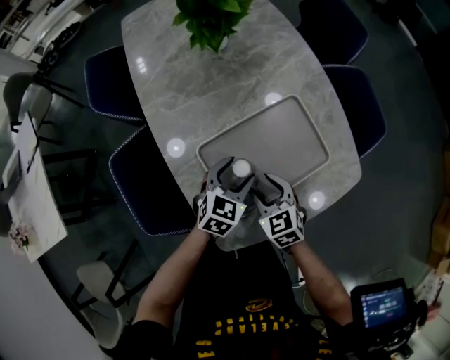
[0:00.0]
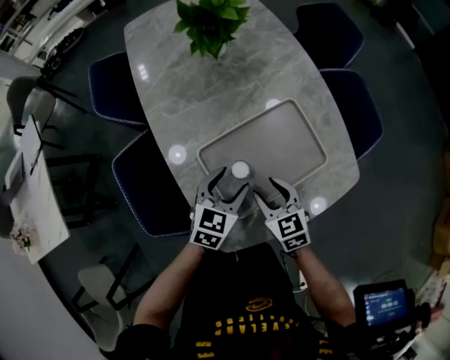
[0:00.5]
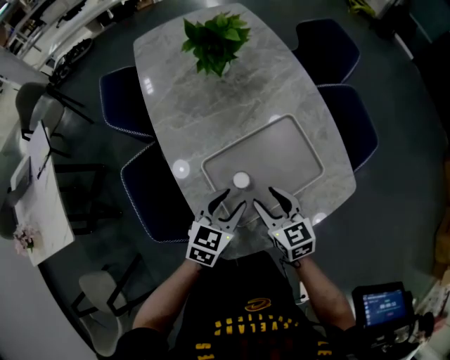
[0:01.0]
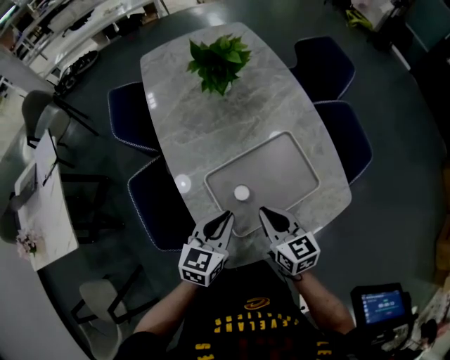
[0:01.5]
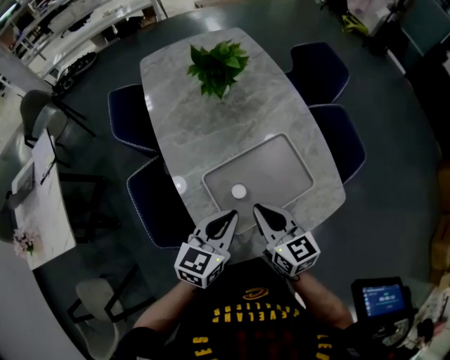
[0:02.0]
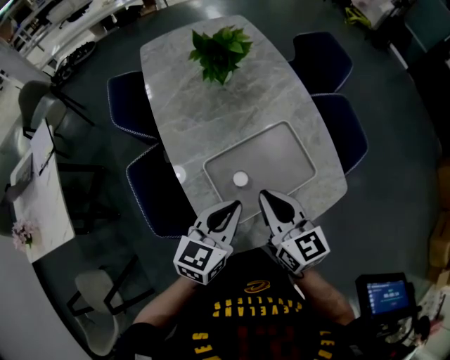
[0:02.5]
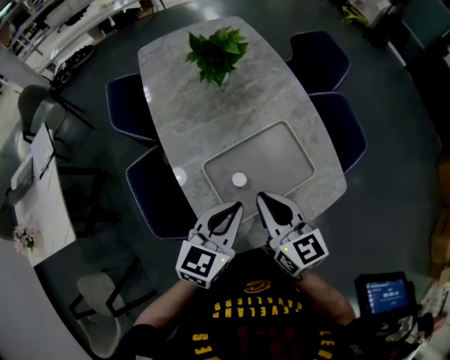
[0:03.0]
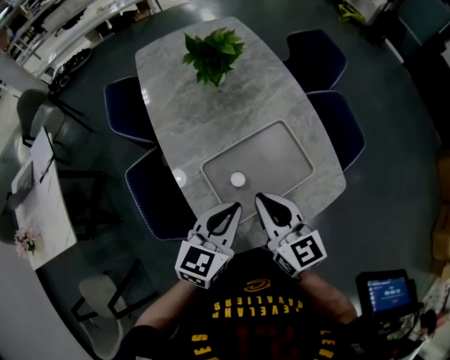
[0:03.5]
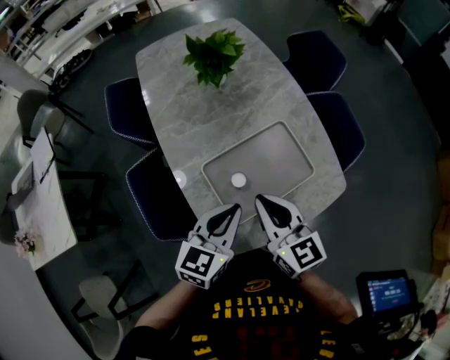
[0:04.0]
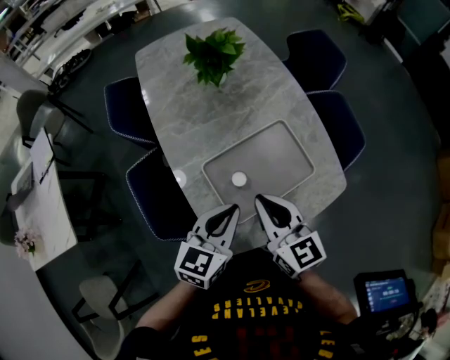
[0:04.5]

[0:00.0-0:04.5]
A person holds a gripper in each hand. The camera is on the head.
0:00.0 to 0:02.0: The two grippers go about 20 cm upward. The right gripper changes its angle by roughly 30 degrees, and closes its fingers. The left gripper swivels about 20 degrees, and closes up.
0:02.0 to 0:04.5: The grippers stay close to where they were, moving slightly.

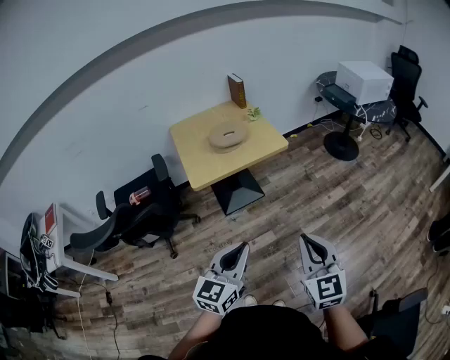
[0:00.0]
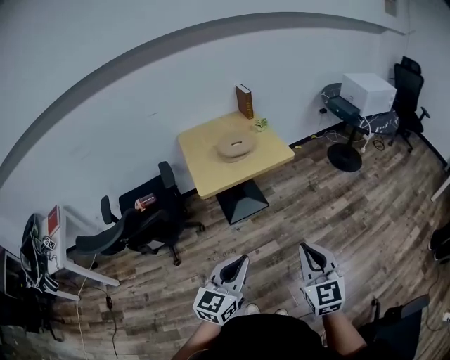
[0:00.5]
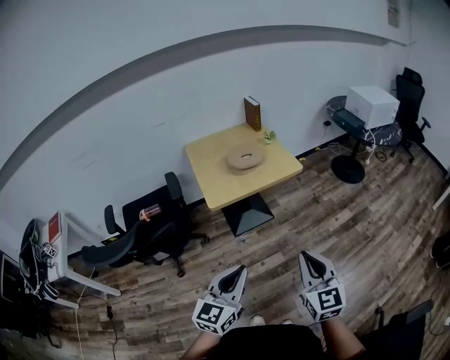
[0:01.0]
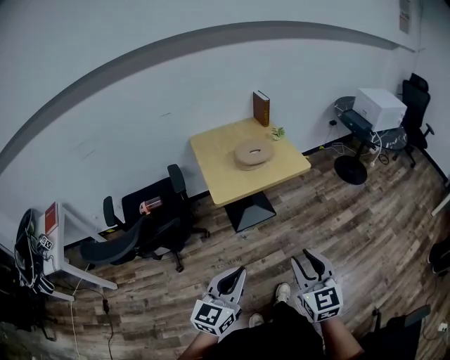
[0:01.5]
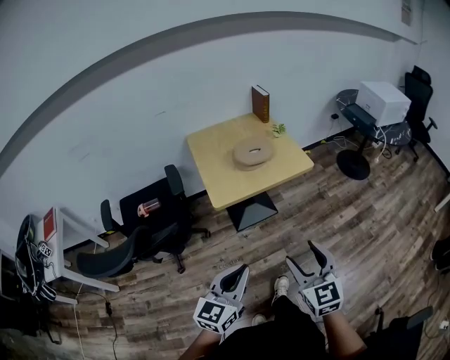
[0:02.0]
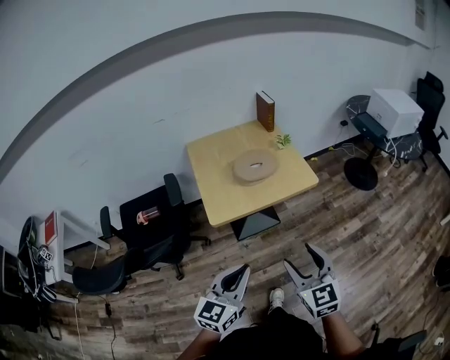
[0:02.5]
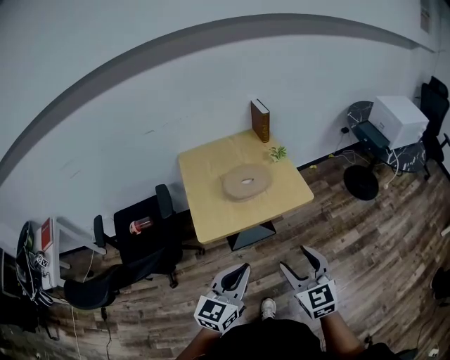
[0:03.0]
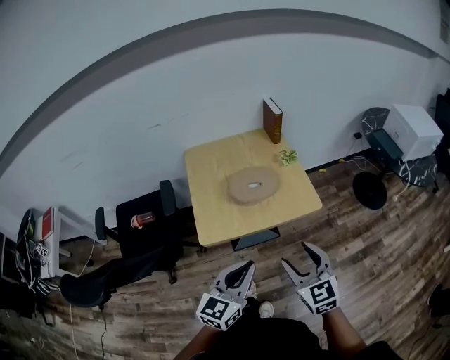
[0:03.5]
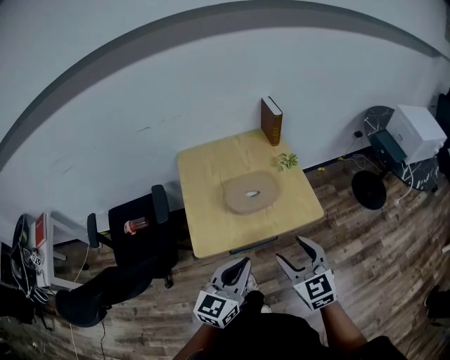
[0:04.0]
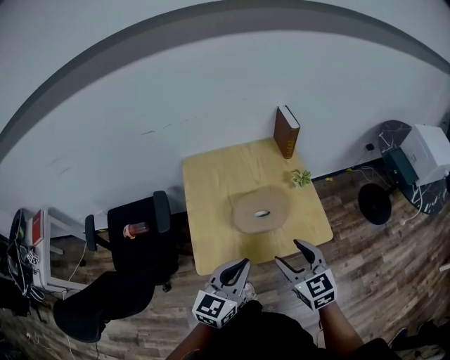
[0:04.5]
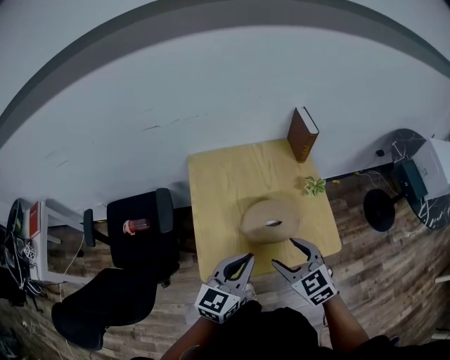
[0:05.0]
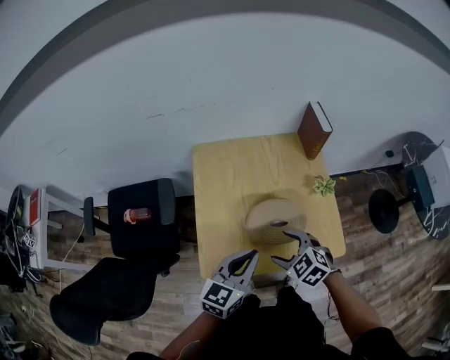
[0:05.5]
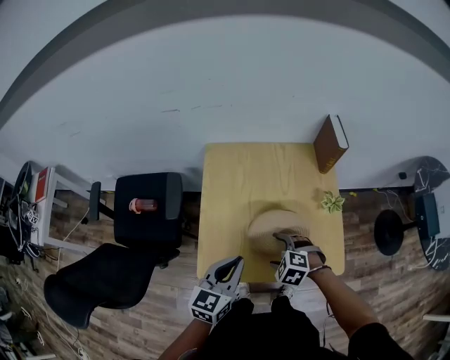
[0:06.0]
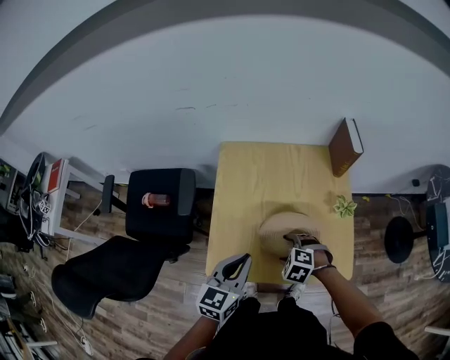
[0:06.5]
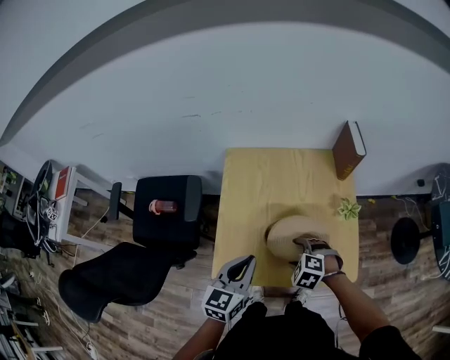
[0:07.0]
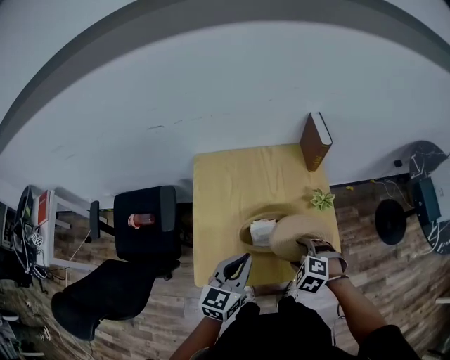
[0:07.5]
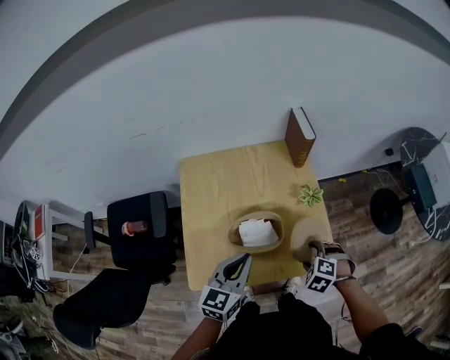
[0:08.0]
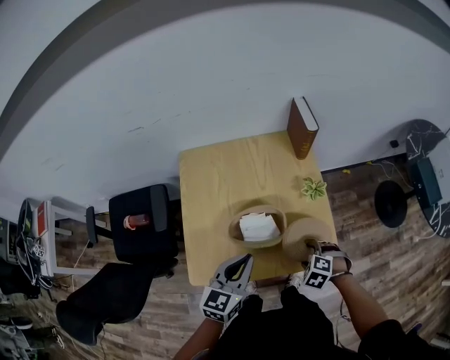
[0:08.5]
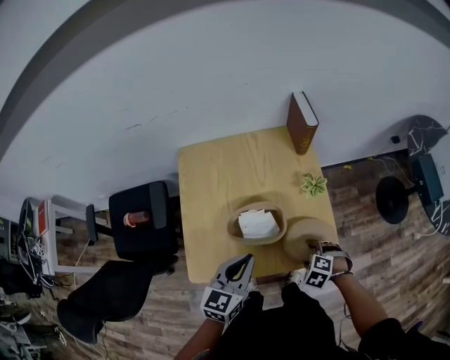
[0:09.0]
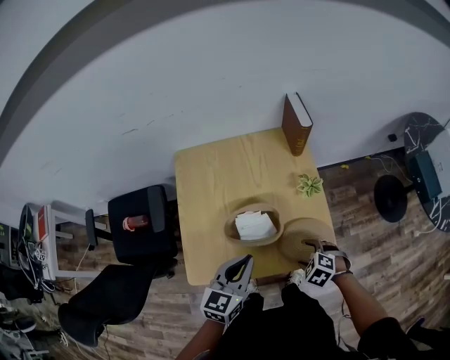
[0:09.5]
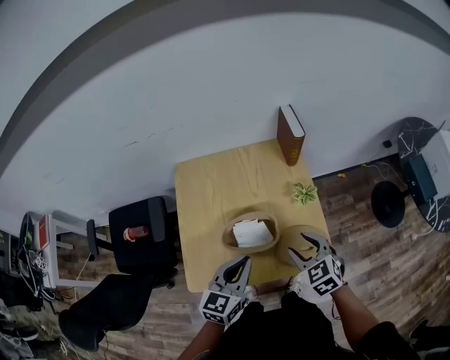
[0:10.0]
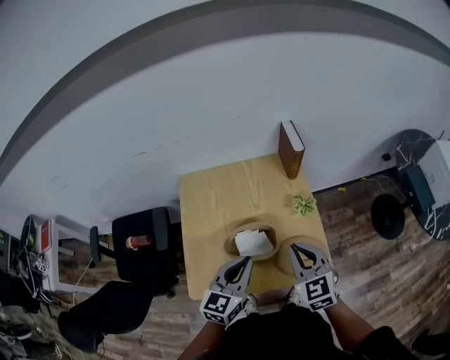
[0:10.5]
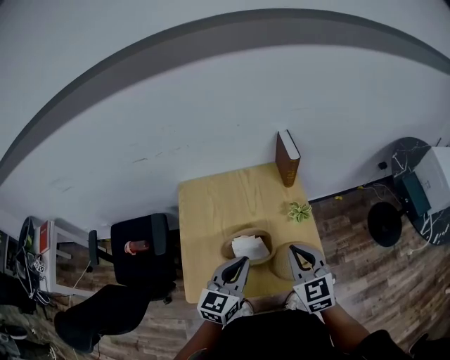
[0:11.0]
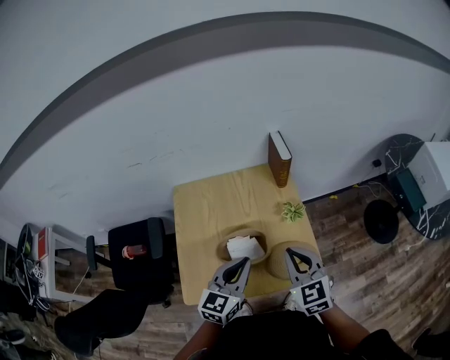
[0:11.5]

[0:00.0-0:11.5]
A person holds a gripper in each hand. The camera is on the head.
0:00.0 to 0:02.0: The left gripper goes about 15 cm to the left. Meanwhile the right gripper heads to the left and forward, covering approximately 15 cm, and opens.
0:02.0 to 0:04.0: The grippers both shift forward by roughly 35 cm.
0:04.0 to 0:06.0: The right gripper shifts by approximately 30 cm, and tips its fingers downward by approximately 50 degrees. Meanwhile the left gripper shifts by some 20 cm.
0:06.0 to 0:07.5: The right gripper travels to the right by some 10 cm, while the left gripper travels to the right by some 5 cm.
0:07.5 to 0:09.5: The left gripper moves approximately 5 cm, while the right gripper moves roughly 10 cm.
0:09.5 to 0:11.5: The right gripper moves upward, about 25 cm, angles its fingers upward, by about 50 degrees, and closes up. Meanwhile the left gripper moves upward, roughly 5 cm.

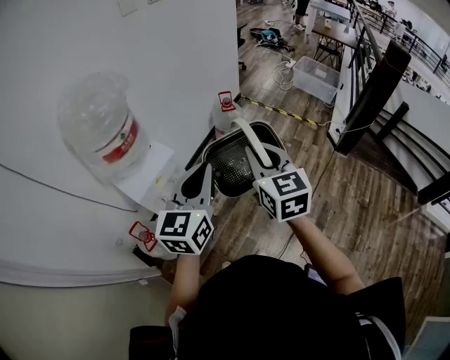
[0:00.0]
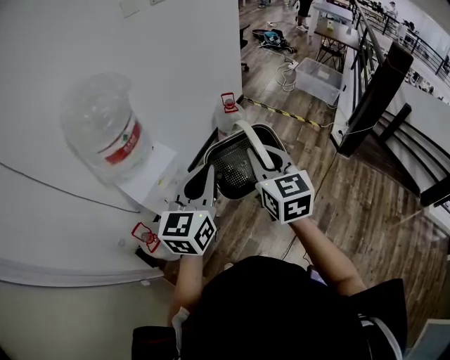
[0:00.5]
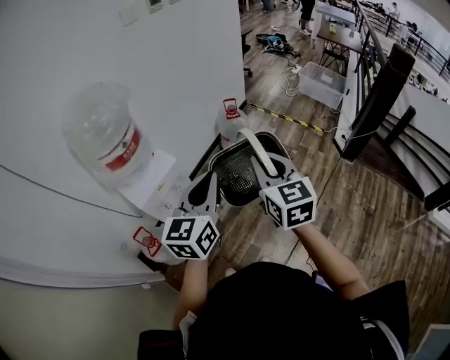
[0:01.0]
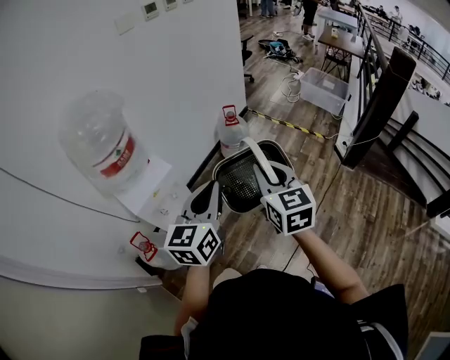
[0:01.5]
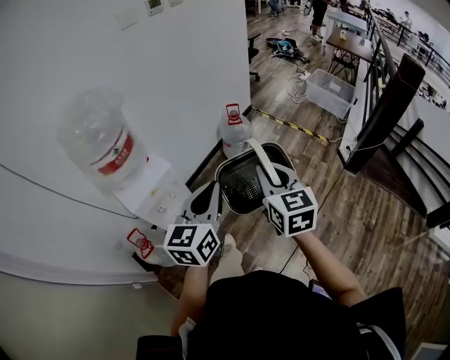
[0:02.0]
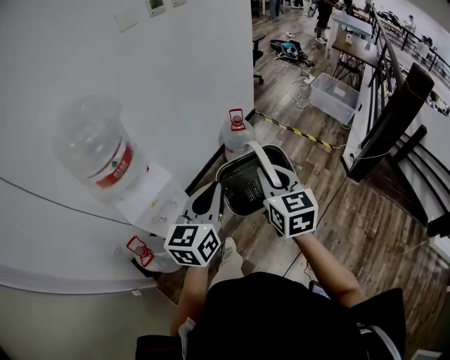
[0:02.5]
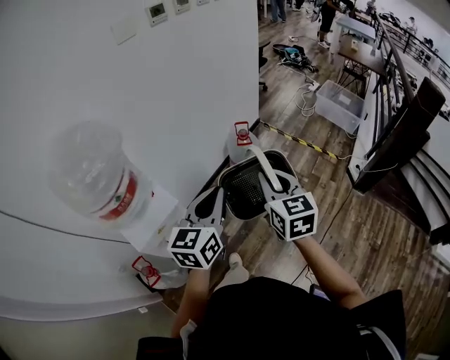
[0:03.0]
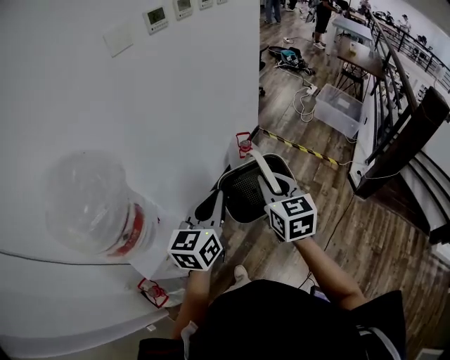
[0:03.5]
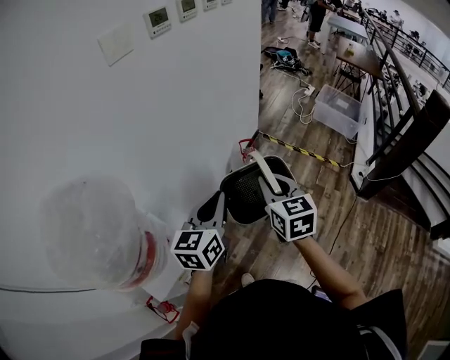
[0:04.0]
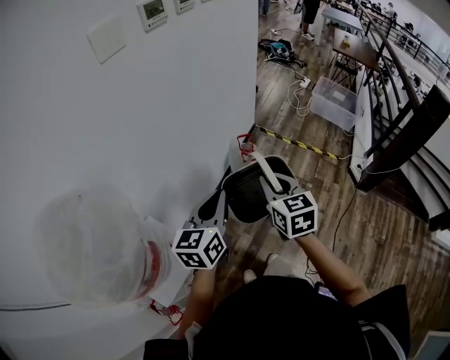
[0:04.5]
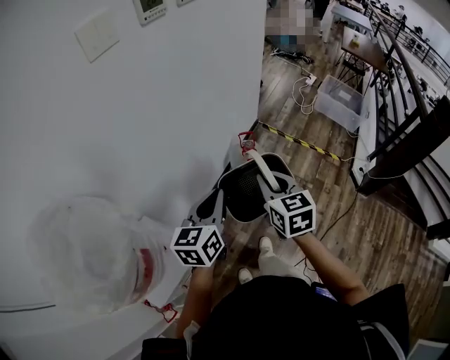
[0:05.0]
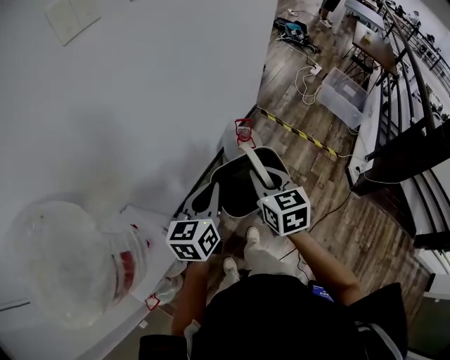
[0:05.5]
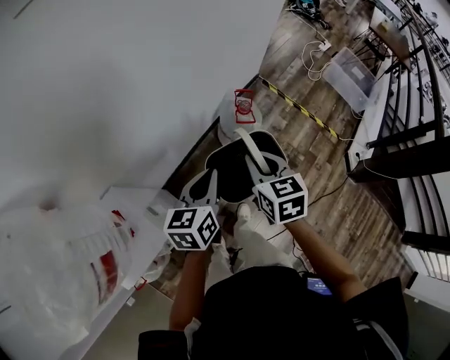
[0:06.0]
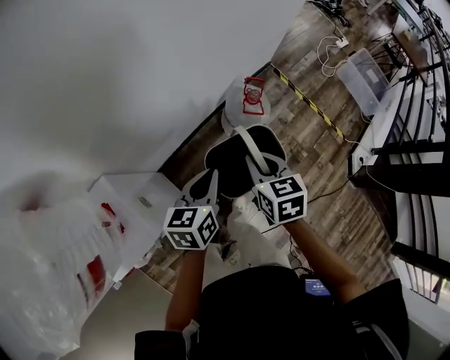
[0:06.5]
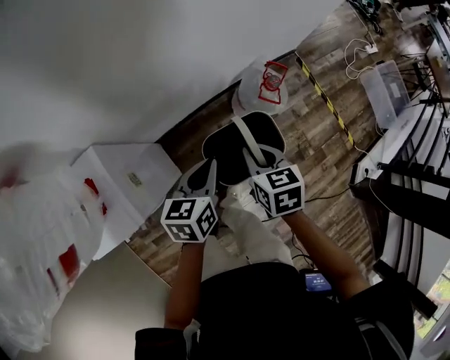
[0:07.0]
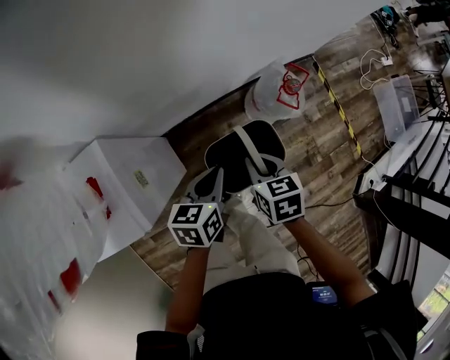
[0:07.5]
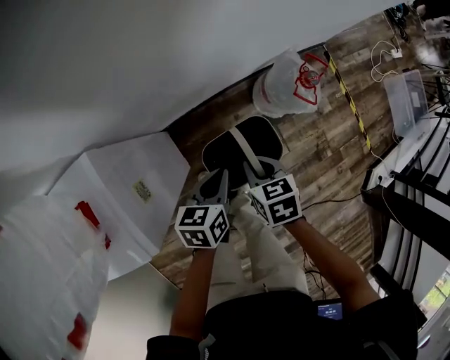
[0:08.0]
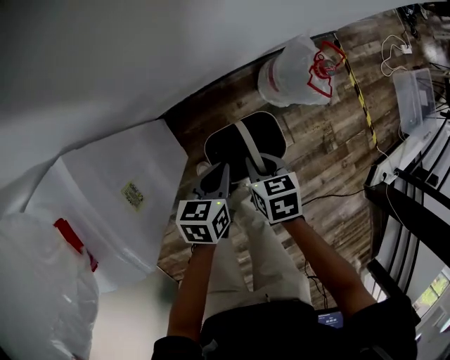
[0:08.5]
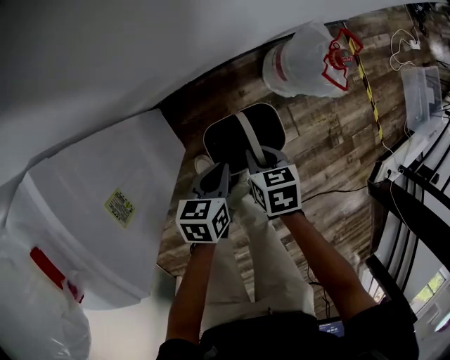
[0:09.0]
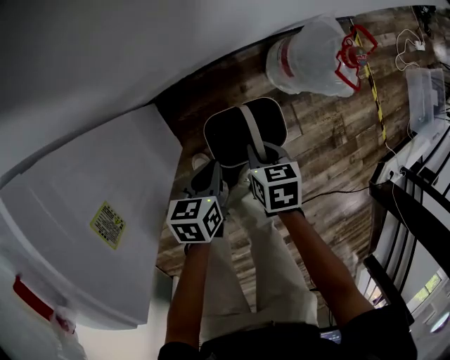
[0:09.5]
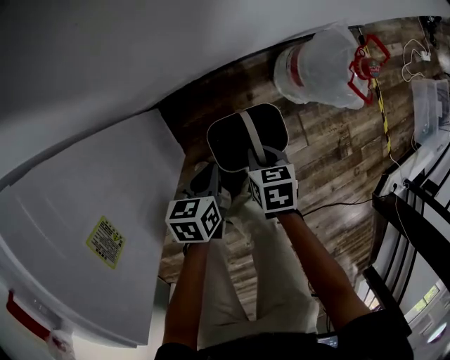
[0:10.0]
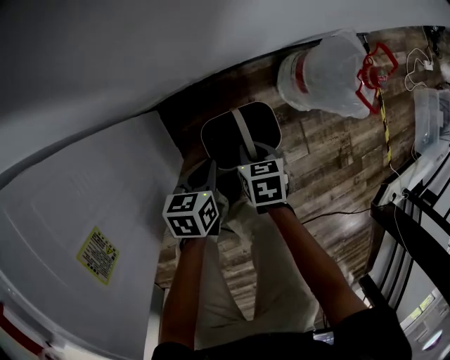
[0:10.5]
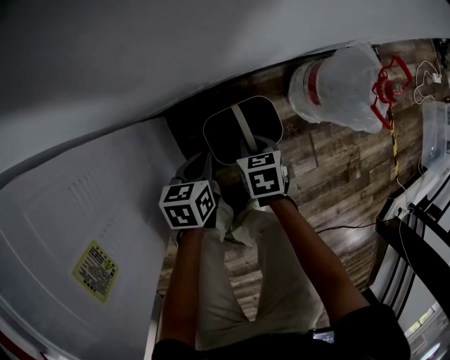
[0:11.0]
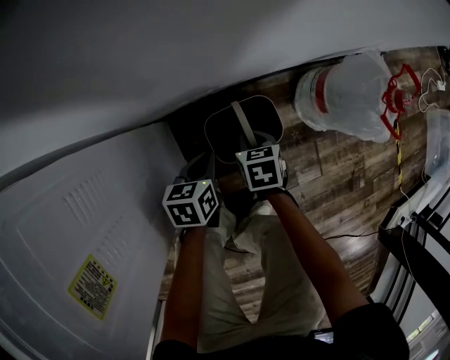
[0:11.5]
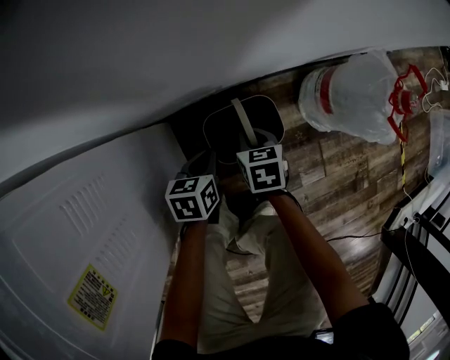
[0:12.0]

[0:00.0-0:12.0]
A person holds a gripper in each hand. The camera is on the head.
0:00.0 to 0:02.0: The grippers both shift to the right by roughly 5 cm.
0:02.0 to 0:04.0: Both grippers move forward, some 30 cm.
0:04.0 to 0:06.0: The grippers both shift downward and forward by some 20 cm. The left gripper turns by roughly 20 degrees.
0:06.0 to 0:08.0: The left gripper travels downward by some 25 cm, and swivels about 30 degrees. The right gripper travels downward and to the left by some 30 cm, and swivels approximately 40 degrees.
0:08.0 to 0:10.0: The grippers both shift downward by some 25 cm.
0:10.0 to 0:12.0: The left gripper travels downward and forward by about 15 cm, while the right gripper travels downward, forward and to the left by about 15 cm.
